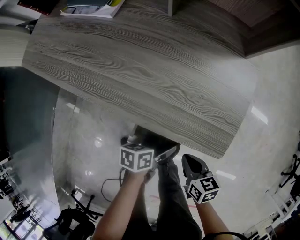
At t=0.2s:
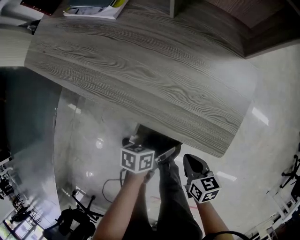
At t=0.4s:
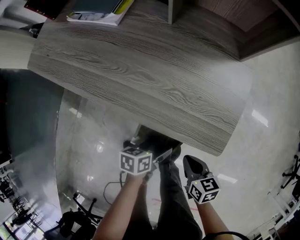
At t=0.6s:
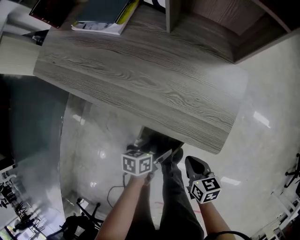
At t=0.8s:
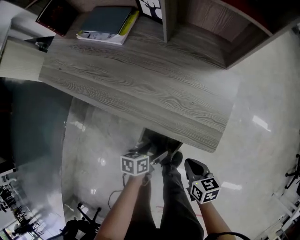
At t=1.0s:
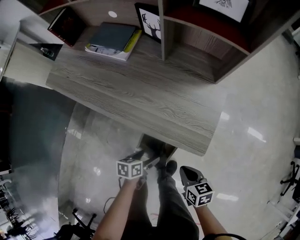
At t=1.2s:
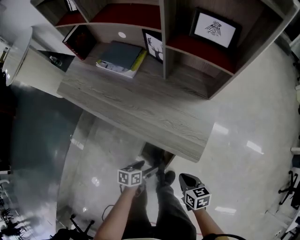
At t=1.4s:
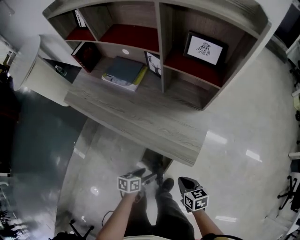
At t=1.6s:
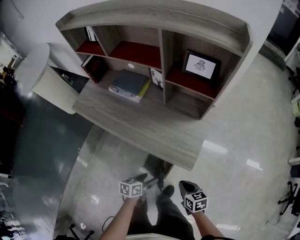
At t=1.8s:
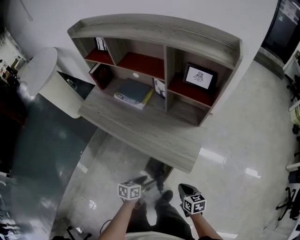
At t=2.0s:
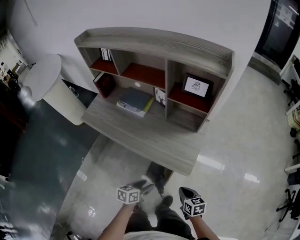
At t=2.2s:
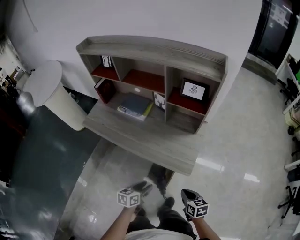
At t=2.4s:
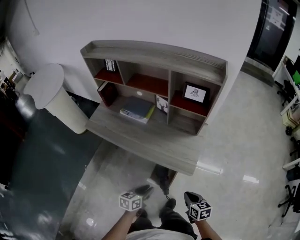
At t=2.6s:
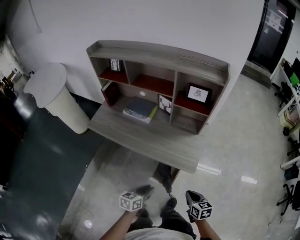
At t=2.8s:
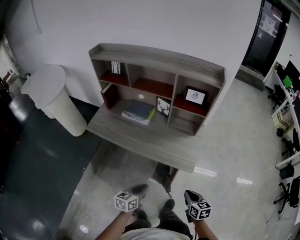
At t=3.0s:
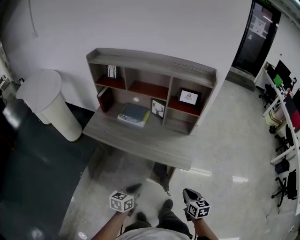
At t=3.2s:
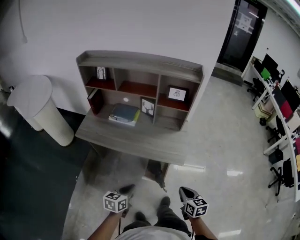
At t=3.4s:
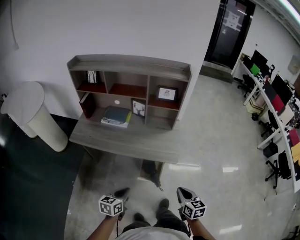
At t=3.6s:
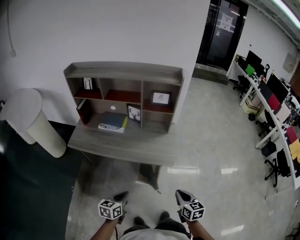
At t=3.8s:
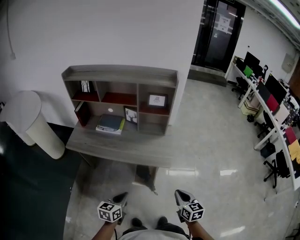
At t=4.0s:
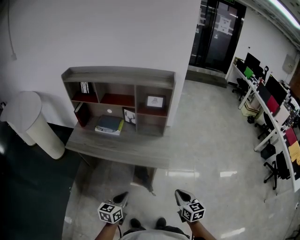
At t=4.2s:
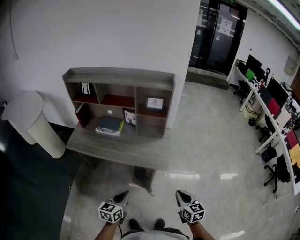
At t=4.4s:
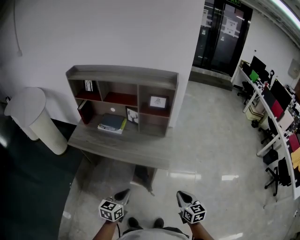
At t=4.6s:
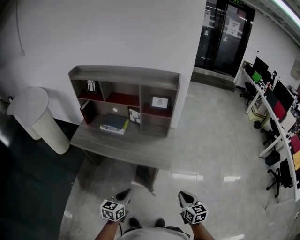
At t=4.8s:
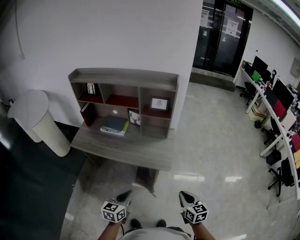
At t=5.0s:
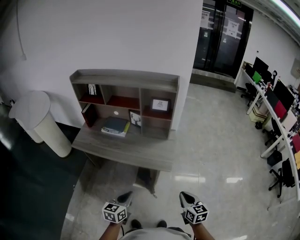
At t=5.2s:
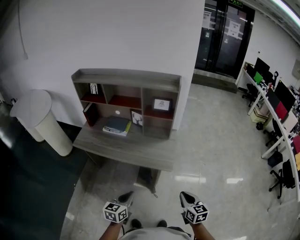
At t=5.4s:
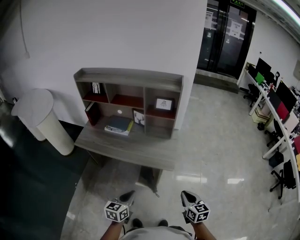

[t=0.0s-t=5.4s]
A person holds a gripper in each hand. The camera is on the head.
t=0.0s to t=1.4s: Both grippers move upward, about 20 cm.
t=1.4s to t=2.8s: The left gripper is displaced upward by approximately 30 cm, changes its angle by about 30 degrees, and closes; the right gripper is displaced upward and backward by roughly 25 cm.
t=2.8s to t=4.0s: The right gripper shifts approximately 15 cm upward, backward and to the right; the left gripper heads backward and upward, covering about 15 cm.
t=4.0s to t=5.4s: The grippers stay close to where they were, moving slightly.

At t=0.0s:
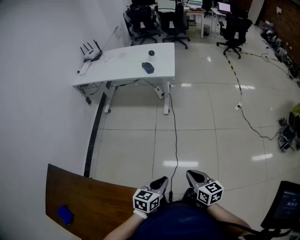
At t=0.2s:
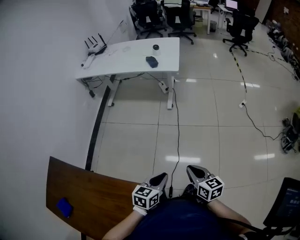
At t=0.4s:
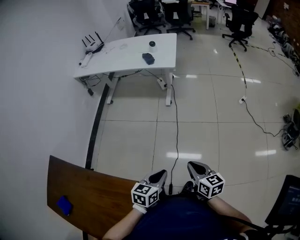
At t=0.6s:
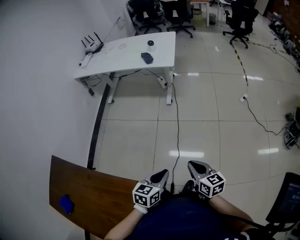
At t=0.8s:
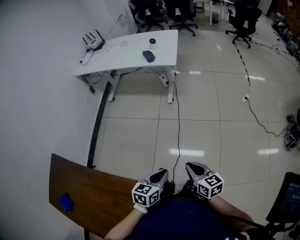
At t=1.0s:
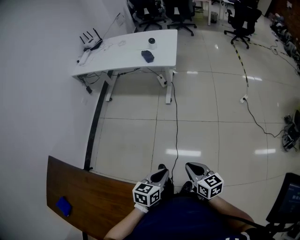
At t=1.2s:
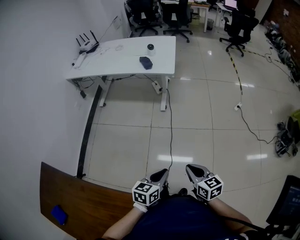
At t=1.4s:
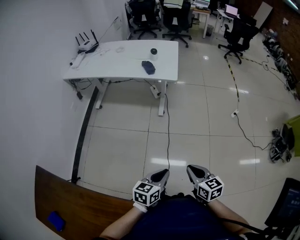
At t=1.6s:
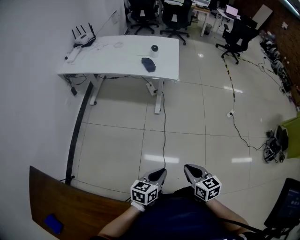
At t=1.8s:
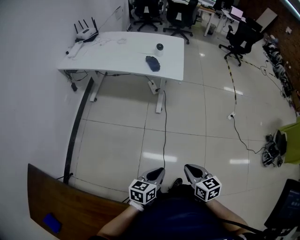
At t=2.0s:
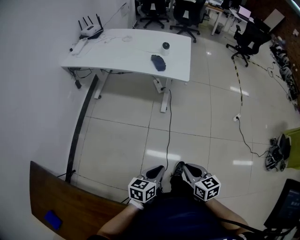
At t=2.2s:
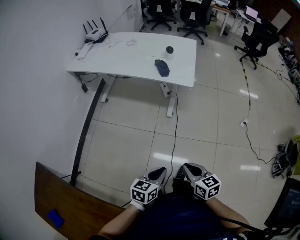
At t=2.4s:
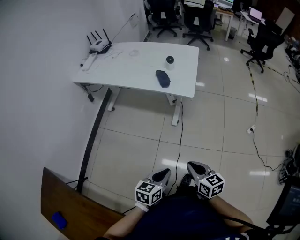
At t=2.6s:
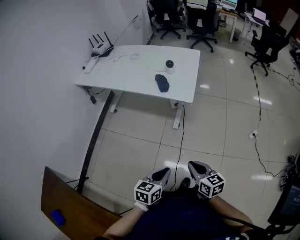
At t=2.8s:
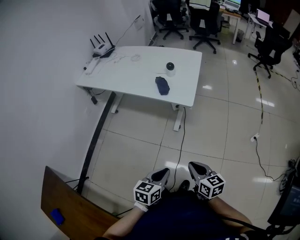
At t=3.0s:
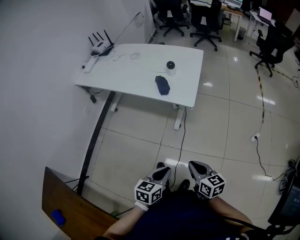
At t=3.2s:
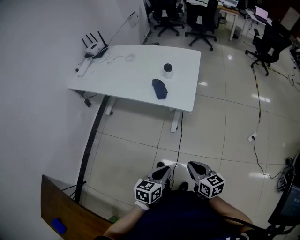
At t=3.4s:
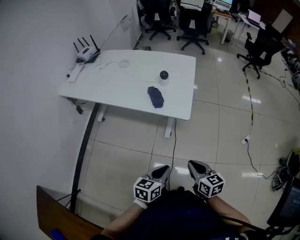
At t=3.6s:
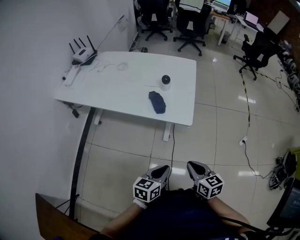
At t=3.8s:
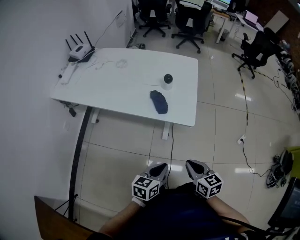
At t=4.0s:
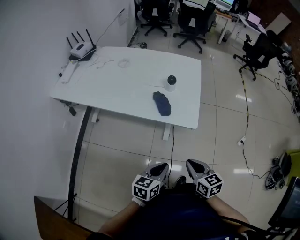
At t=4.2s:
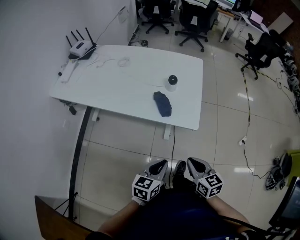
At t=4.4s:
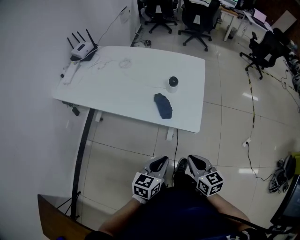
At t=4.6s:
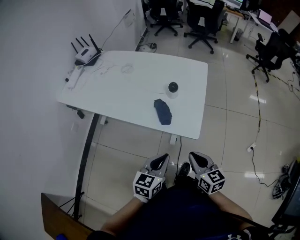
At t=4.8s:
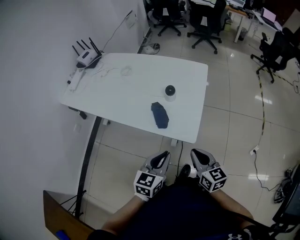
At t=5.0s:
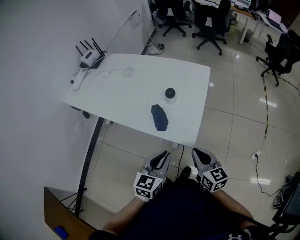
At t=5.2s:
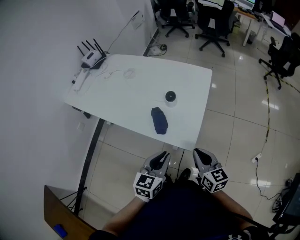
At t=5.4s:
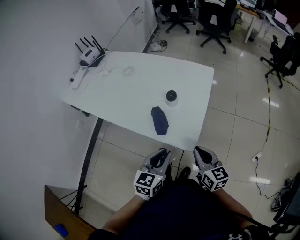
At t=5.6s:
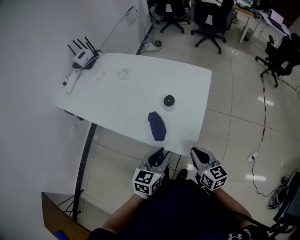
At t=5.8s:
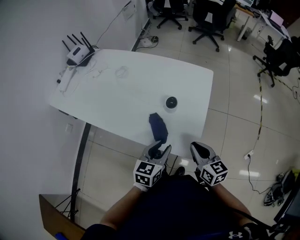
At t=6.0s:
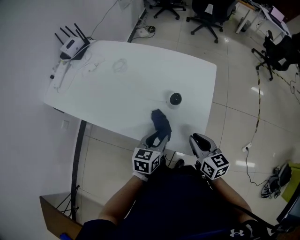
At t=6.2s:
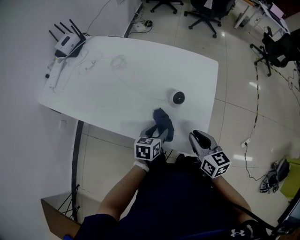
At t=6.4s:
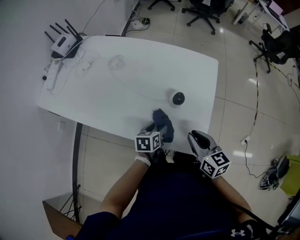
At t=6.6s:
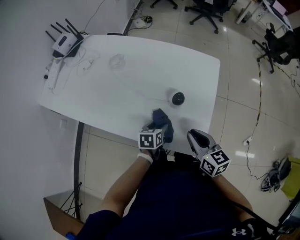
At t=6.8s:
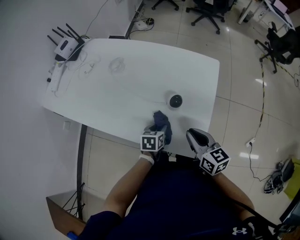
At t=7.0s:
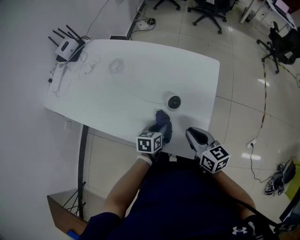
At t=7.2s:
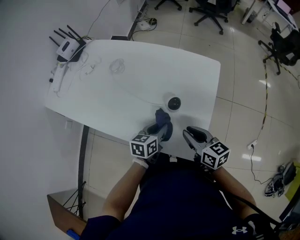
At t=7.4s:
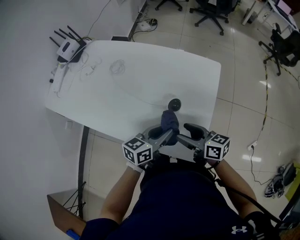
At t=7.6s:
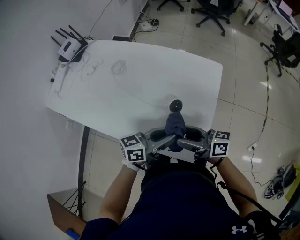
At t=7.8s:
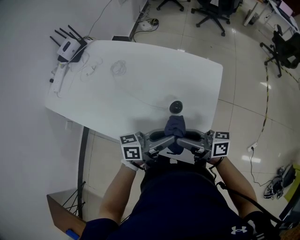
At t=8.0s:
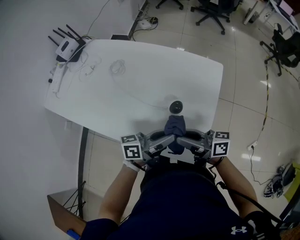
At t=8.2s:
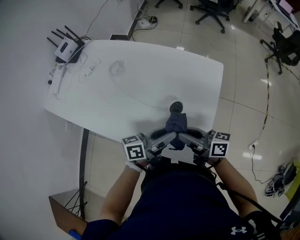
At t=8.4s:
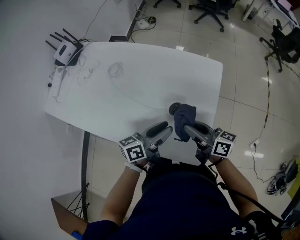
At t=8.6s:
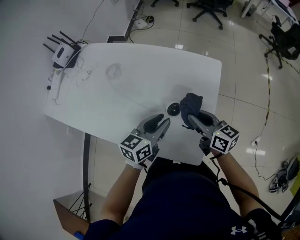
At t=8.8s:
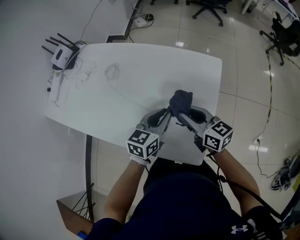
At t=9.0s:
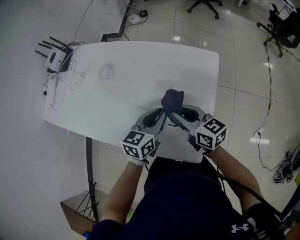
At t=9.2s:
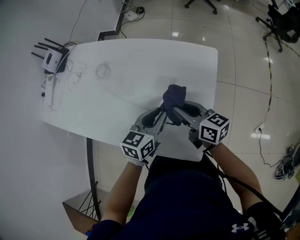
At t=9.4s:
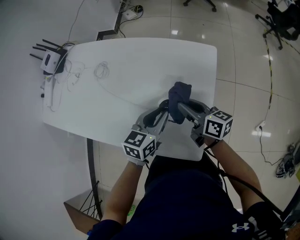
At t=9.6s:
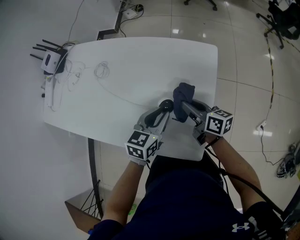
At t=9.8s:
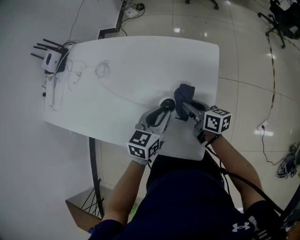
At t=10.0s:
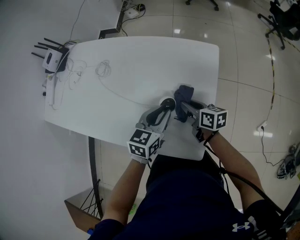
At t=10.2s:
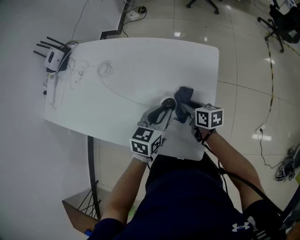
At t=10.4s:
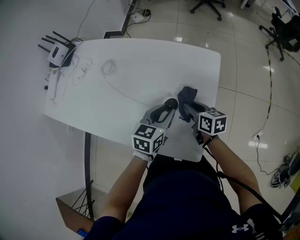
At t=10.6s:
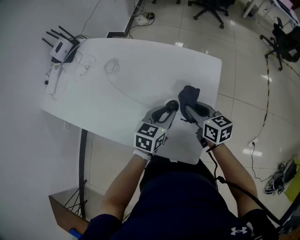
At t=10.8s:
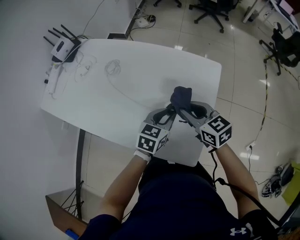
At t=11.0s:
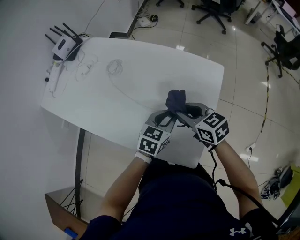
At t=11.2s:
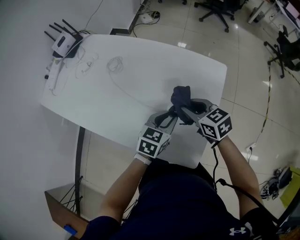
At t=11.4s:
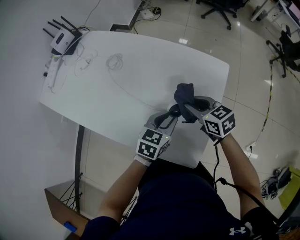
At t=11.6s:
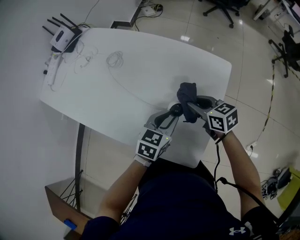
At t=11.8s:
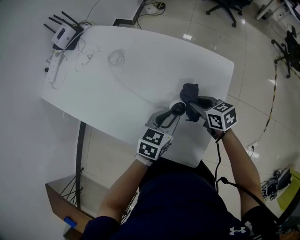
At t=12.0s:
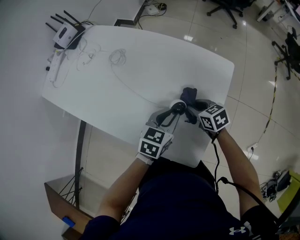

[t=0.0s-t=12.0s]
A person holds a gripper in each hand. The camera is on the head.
t=0.0s to t=1.6s: The grippers both shift forward by some 15 cm.
t=1.6s to t=3.0s: Both grippers travel together forward, some 25 cm.
t=3.0s to t=4.4s: The left gripper moves forward, some 25 cm. The right gripper goes some 20 cm forward and to the left.
t=4.4s to t=6.0s: Both grippers travel together forward, roughly 25 cm. The left gripper opens up.
t=6.0s to t=7.6s: The left gripper heads upward, covering about 10 cm, tips its fingers upward by some 30 degrees, and opens, then closes again, while the right gripper changes place by approximately 10 cm, changes its angle by some 50 degrees, and opens up.
t=7.6s to t=9.0s: The left gripper ends up approximately 10 cm from where it was, and swivels about 40 degrees. The right gripper ends up approximately 10 cm from where it was, swivels about 30 degrees, and closes up.
t=9.0s to t=10.4s: The right gripper travels downward and to the right by roughly 10 cm, and turns by about 20 degrees.
t=10.4s to t=12.0s: The right gripper moves about 10 cm upward and comes back, and swivels some 30 degrees.

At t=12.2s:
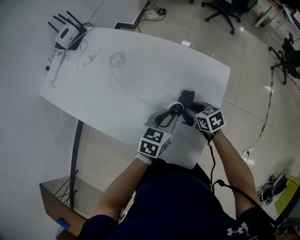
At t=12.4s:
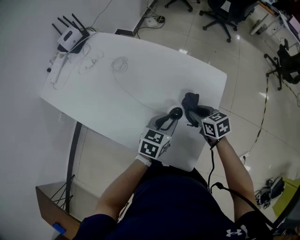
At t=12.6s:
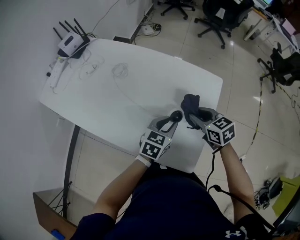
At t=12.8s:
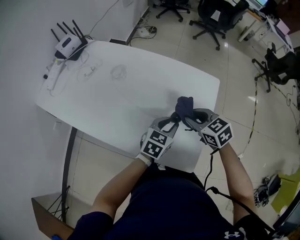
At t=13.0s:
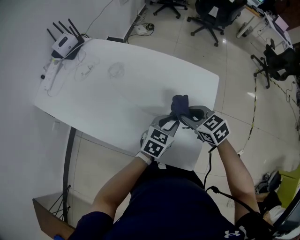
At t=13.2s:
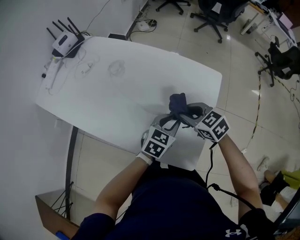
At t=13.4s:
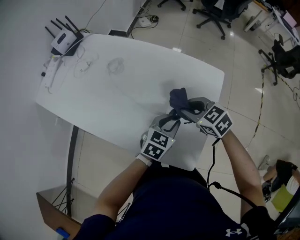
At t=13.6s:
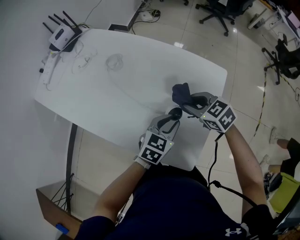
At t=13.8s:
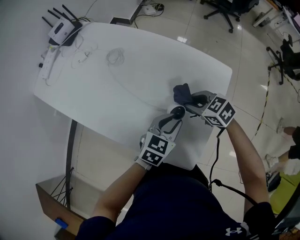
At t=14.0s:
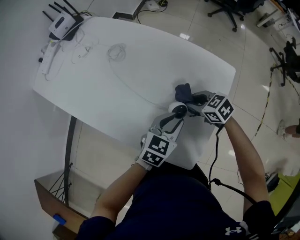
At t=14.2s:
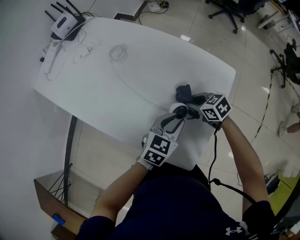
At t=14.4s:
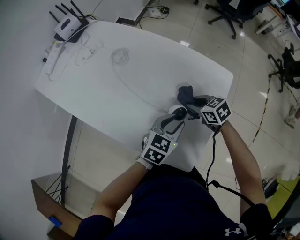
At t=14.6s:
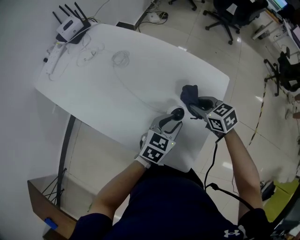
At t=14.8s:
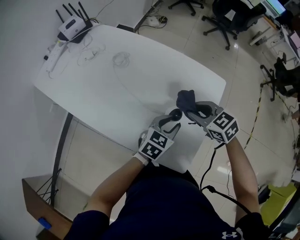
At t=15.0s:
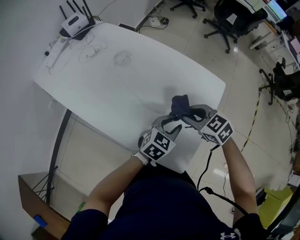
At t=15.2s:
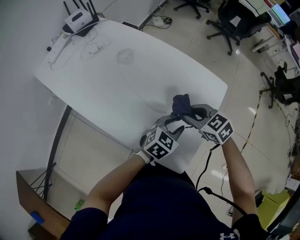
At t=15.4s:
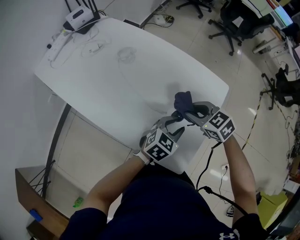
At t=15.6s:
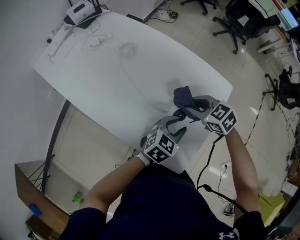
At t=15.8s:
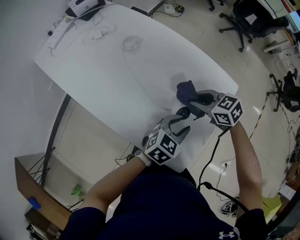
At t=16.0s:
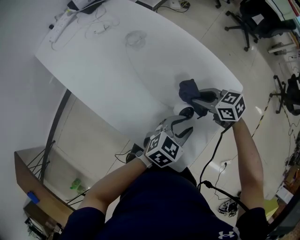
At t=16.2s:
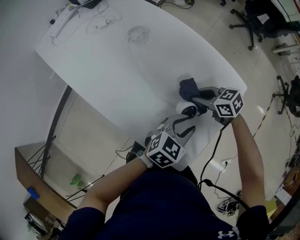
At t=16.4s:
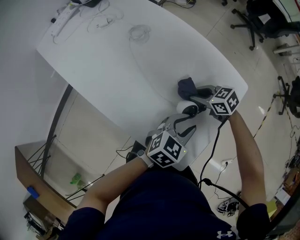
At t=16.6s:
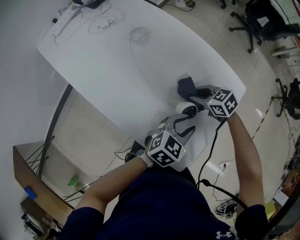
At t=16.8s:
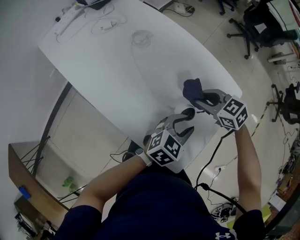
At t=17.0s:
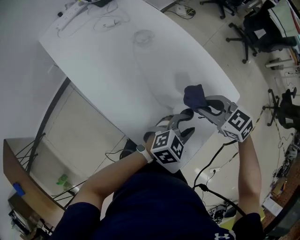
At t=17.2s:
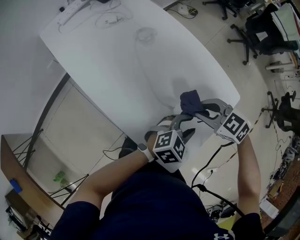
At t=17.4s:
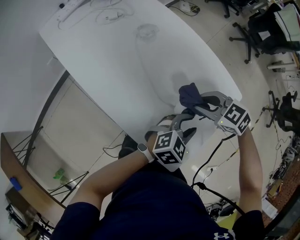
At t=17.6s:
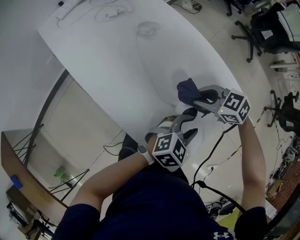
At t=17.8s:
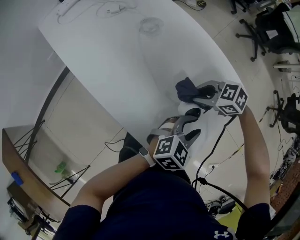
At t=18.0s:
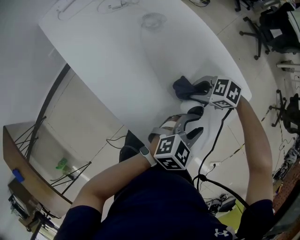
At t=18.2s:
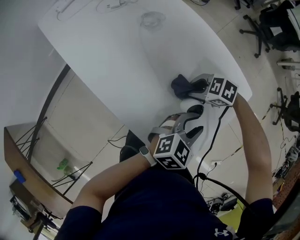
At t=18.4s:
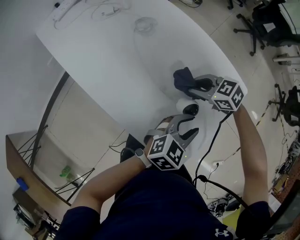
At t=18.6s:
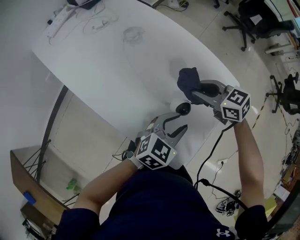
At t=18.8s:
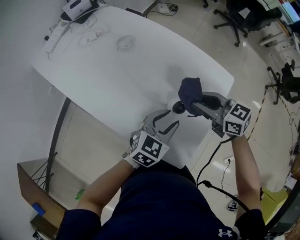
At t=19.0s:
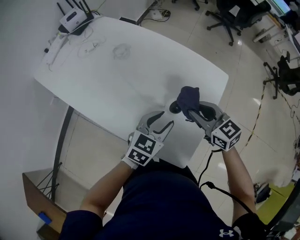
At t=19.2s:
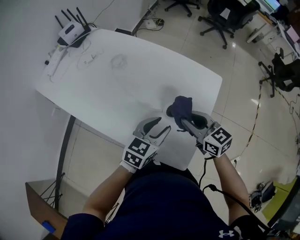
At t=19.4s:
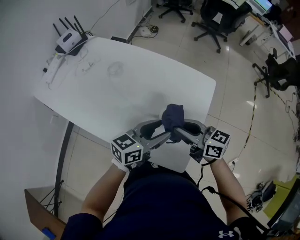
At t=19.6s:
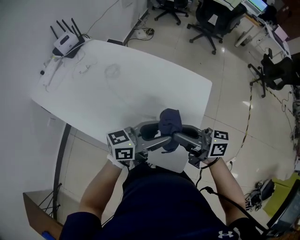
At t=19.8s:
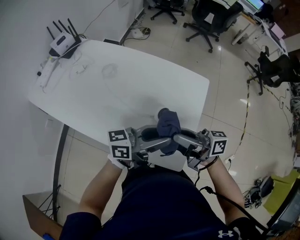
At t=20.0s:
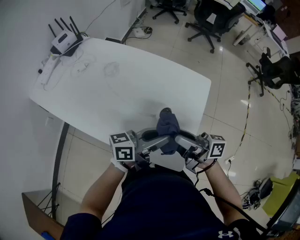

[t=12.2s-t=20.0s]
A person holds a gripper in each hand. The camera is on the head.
t=12.2s to t=13.8s: The right gripper moves upward, roughly 5 cm, and changes its angle by roughly 30 degrees.
t=13.8s to t=15.4s: The right gripper changes place by about 5 cm.
t=15.4s to t=16.8s: The right gripper moves roughly 10 cm downward and comes back.
t=16.8s to t=18.4s: The right gripper goes up and down, about 15 cm each way, reversing 2 times.
t=18.4s to t=20.0s: The two grippers go roughly 15 cm upward. The right gripper tilts its fingers roughly 60 degrees upward, and opens its fingers; the left gripper points its fingers approximately 40 degrees further upward.
